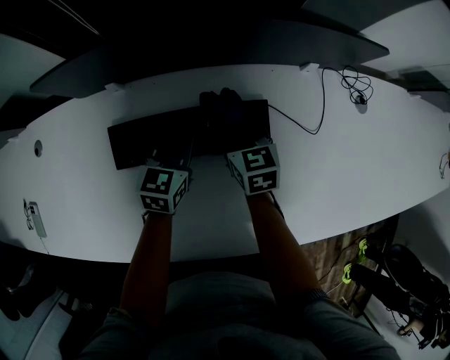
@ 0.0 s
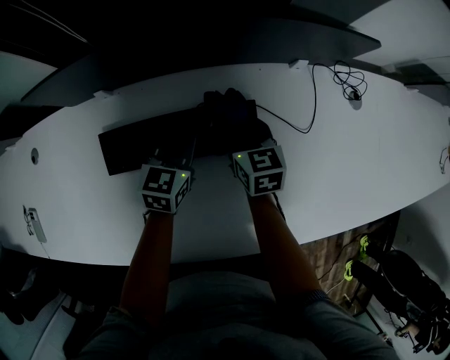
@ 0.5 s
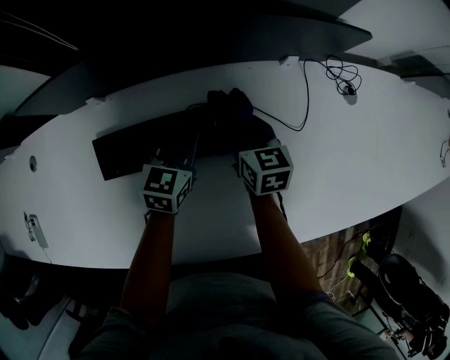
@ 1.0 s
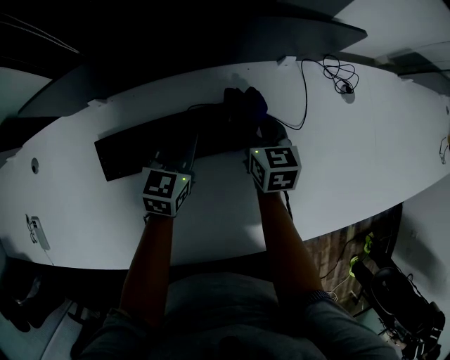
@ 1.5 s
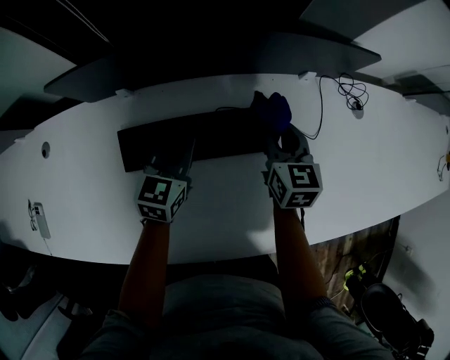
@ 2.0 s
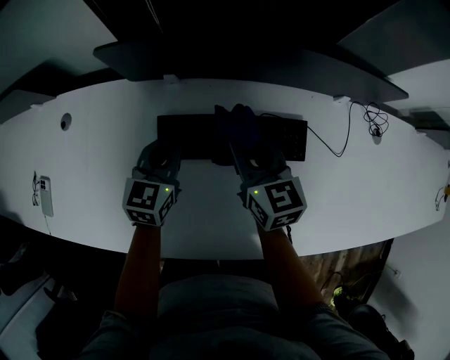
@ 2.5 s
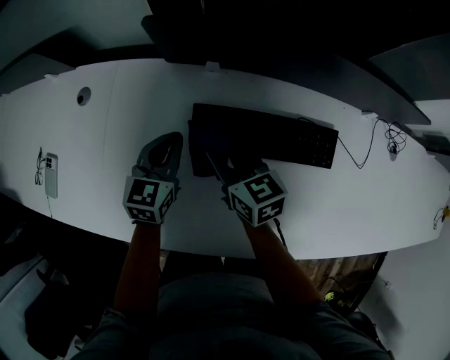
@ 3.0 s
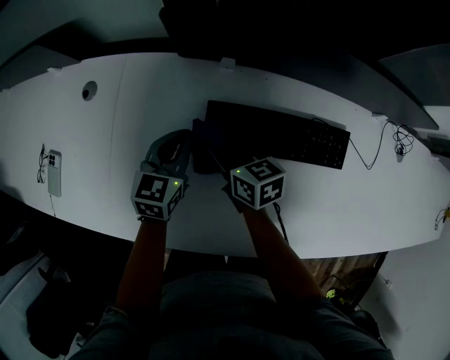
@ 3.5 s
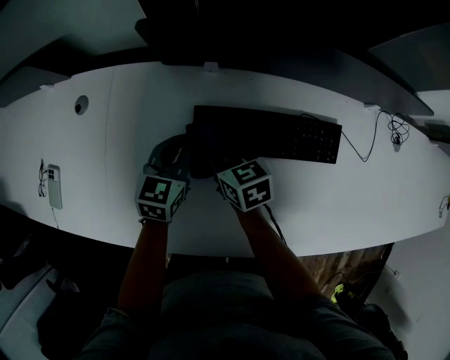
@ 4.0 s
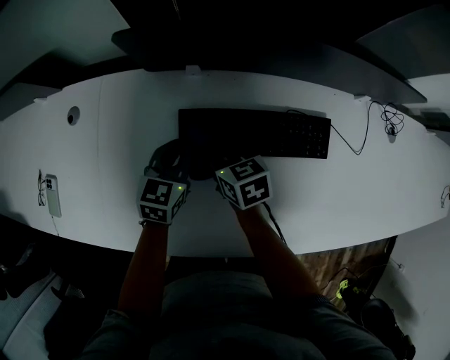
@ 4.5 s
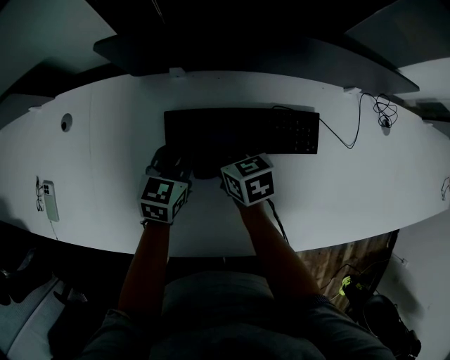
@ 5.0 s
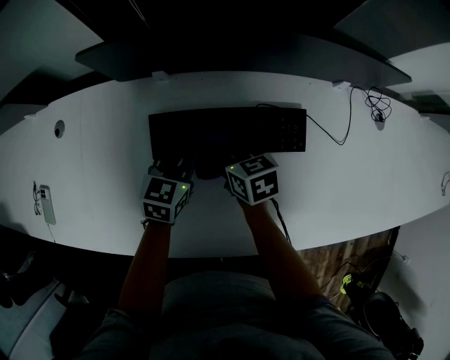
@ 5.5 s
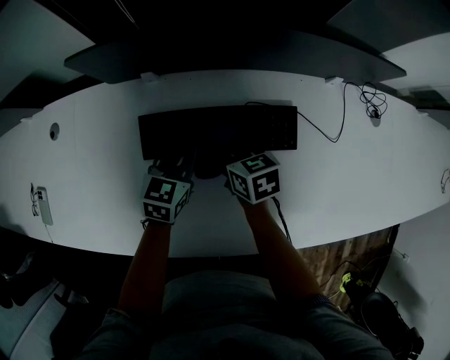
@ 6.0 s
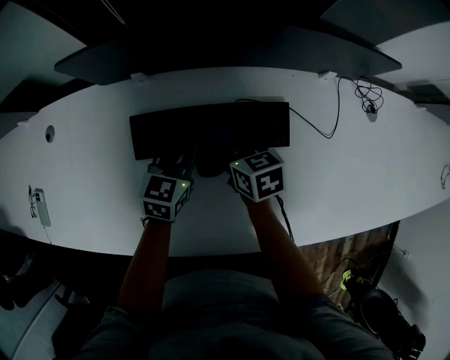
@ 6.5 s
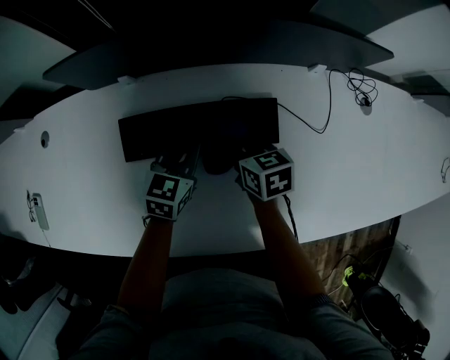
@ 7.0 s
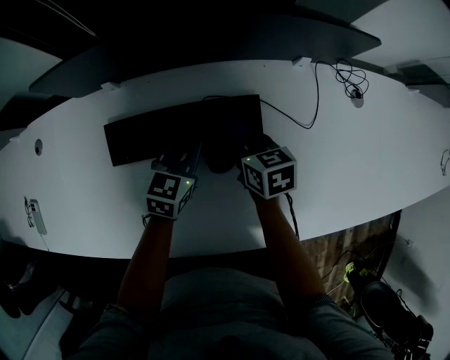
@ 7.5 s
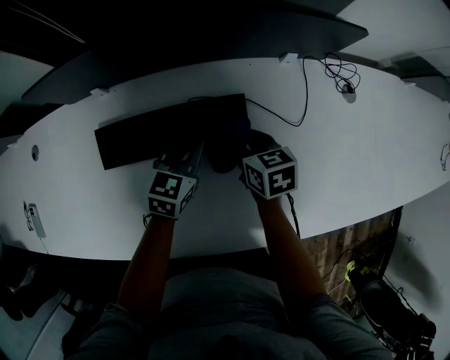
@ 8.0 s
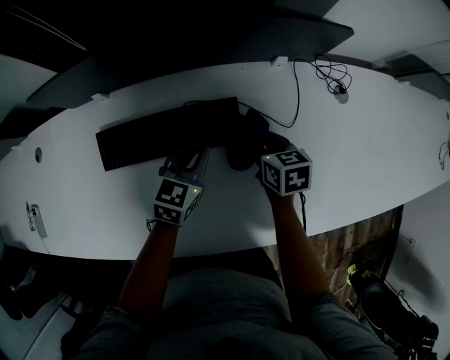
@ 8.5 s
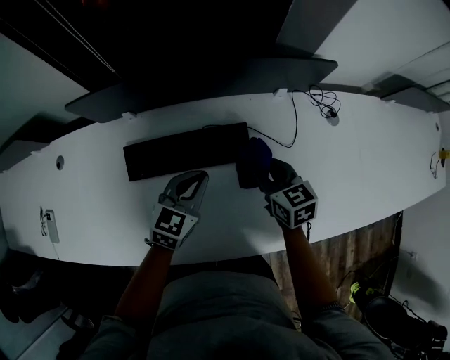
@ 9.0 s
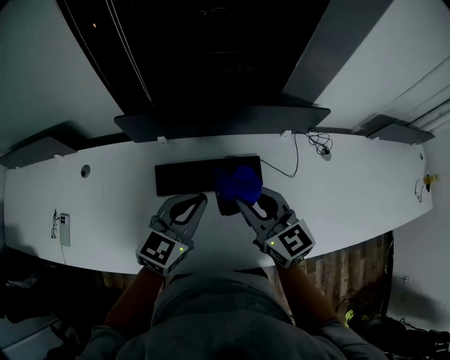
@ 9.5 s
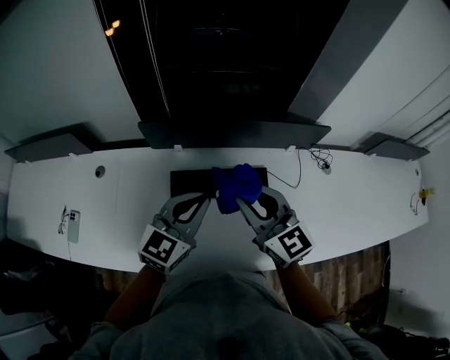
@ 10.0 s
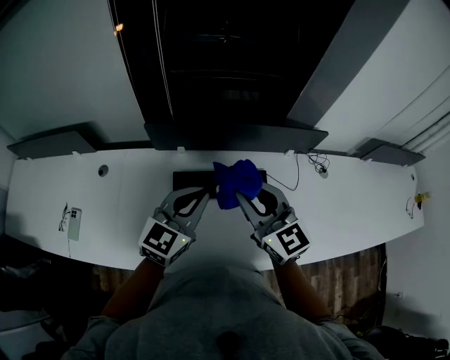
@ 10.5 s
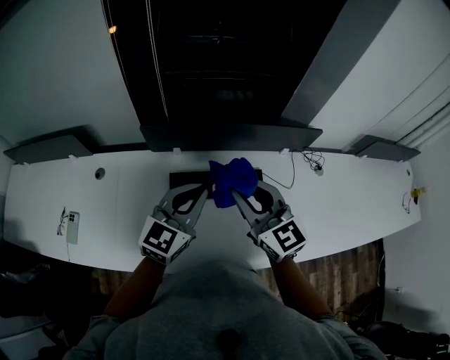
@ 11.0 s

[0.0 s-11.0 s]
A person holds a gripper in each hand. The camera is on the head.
0.0 to 2.0 s: The right gripper shifts some 10 cm to the right and upward, while the left gripper travels to the right and back again, approximately 5 cm each way.
2.0 to 3.5 s: The left gripper changes place by some 25 cm; the right gripper changes place by approximately 40 cm, and swivels approximately 40 degrees.
3.5 to 5.5 s: The two grippers go approximately 15 cm to the right.
5.5 to 7.5 s: The two grippers go about 15 cm to the right.
7.5 to 9.0 s: The right gripper is displaced upward and to the right by approximately 15 cm. The left gripper moves upward and backward, some 10 cm.
9.0 to 11.0 s: Both grippers move upward and to the left, roughly 35 cm. The left gripper turns by about 20 degrees; the right gripper swivels roughly 40 degrees.

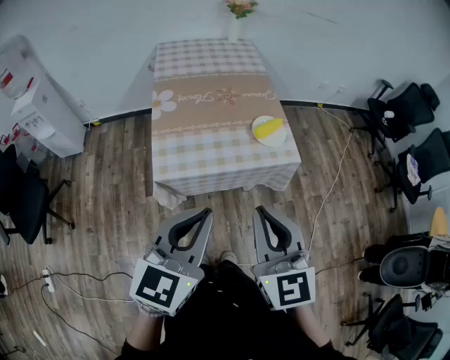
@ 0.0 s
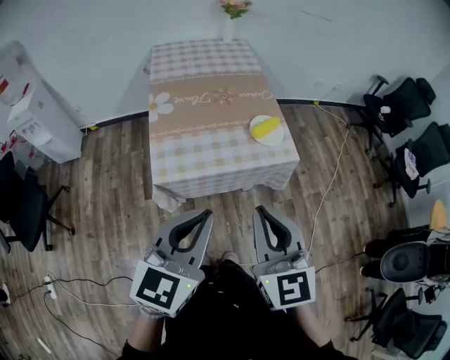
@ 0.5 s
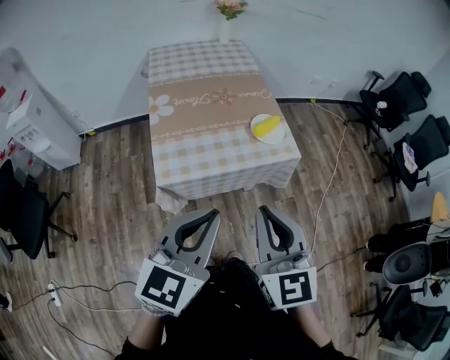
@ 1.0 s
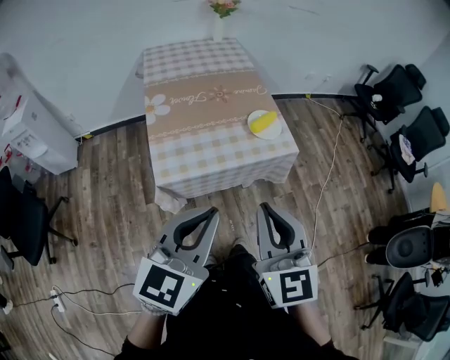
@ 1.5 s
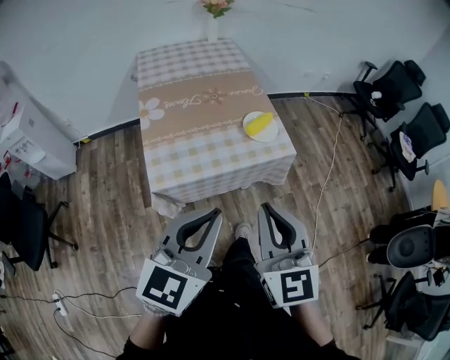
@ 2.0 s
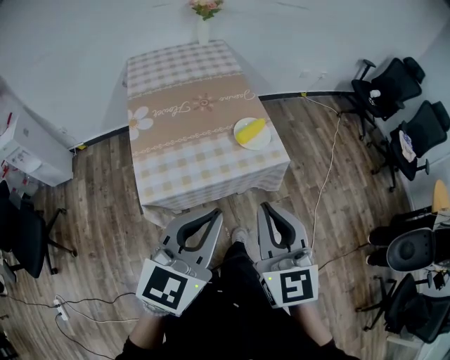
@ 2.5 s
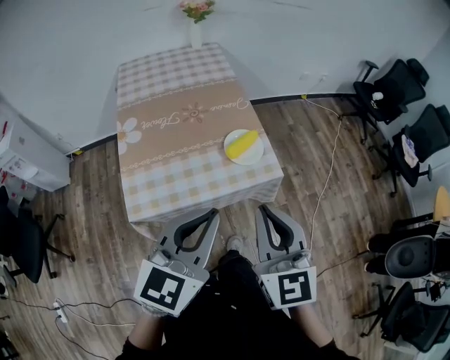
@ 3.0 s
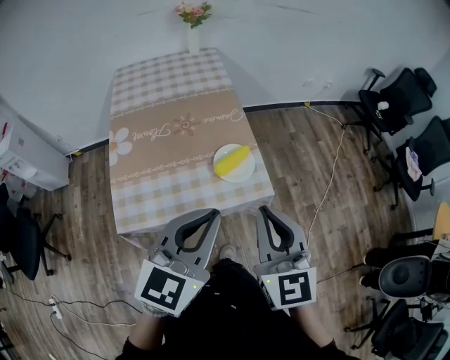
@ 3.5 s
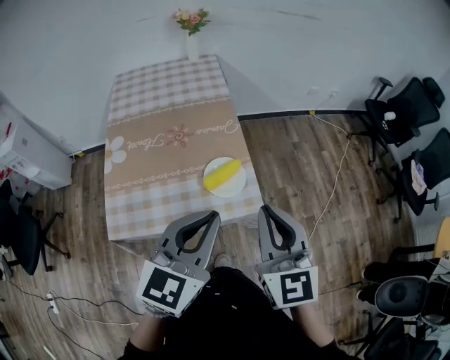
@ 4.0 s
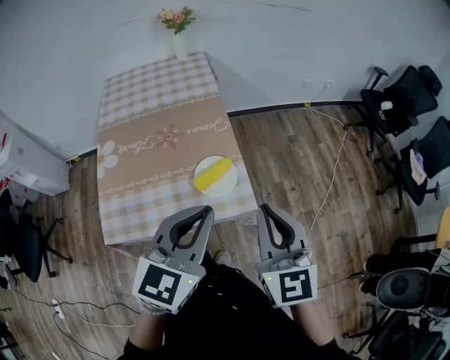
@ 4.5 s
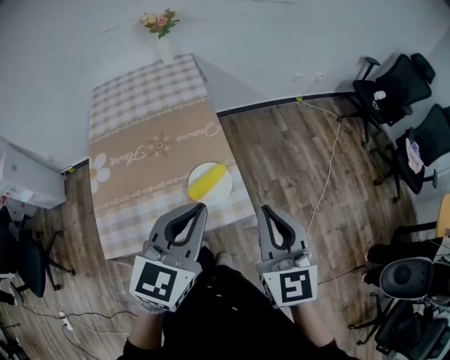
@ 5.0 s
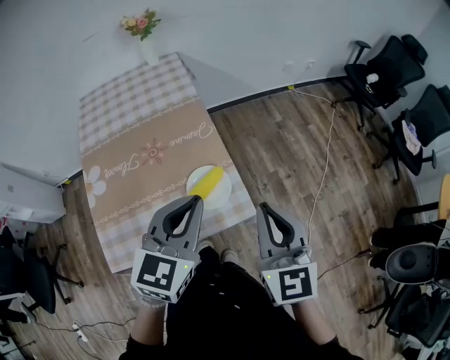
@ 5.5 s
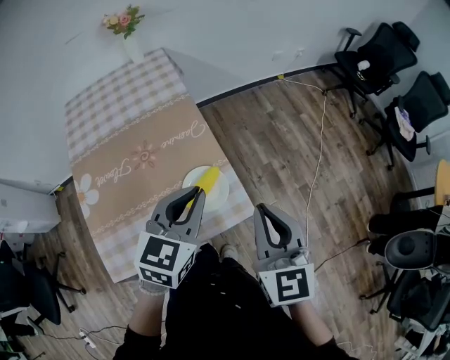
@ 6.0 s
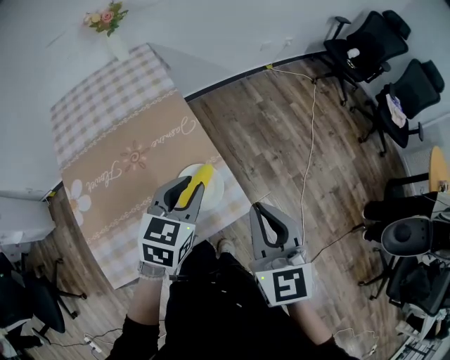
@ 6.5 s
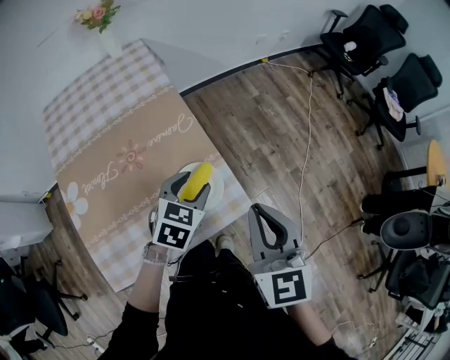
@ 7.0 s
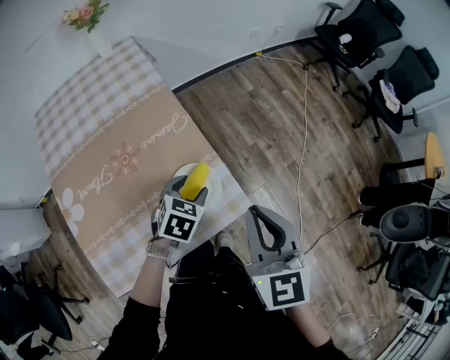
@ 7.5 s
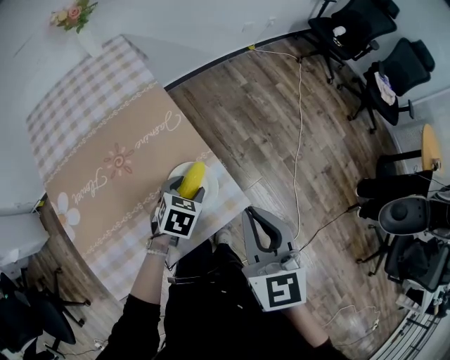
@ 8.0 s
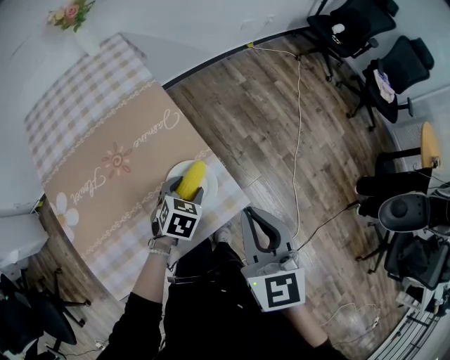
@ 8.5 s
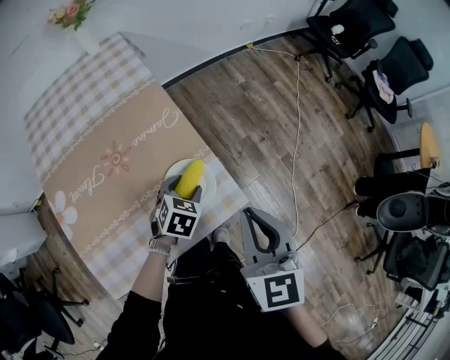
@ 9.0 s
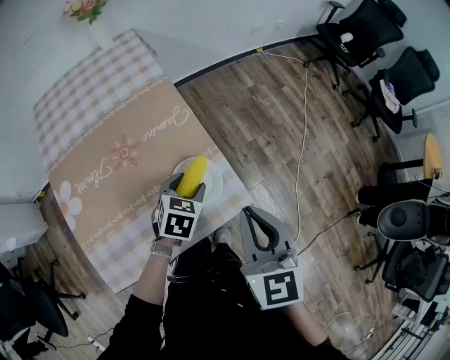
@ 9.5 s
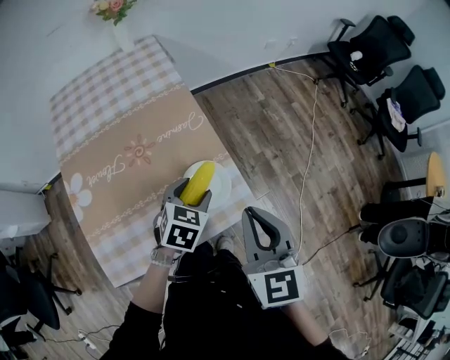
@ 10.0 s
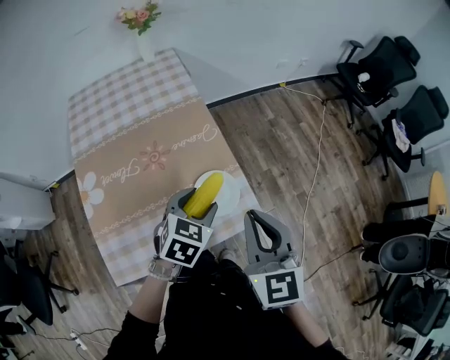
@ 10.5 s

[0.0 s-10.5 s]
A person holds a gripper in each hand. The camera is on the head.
0.0 to 2.0 s: The grippers stay close to where they were, moving slightly.
2.0 to 4.0 s: Both grippers travel together forward and to the right, some 30 cm.
4.0 to 6.5 s: The right gripper travels forward by about 10 cm, while the left gripper is displaced forward and downward by some 25 cm, and rotates approximately 20 degrees.
6.5 to 8.5 s: The left gripper goes some 20 cm downward, swivels some 30 degrees, and opens up.
8.5 to 10.5 s: The right gripper shifts by approximately 5 cm. Meanwhile the left gripper is displaced upward by approximately 15 cm.

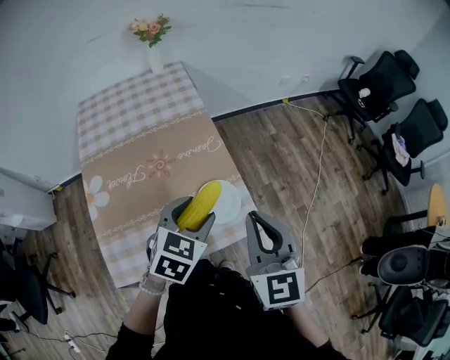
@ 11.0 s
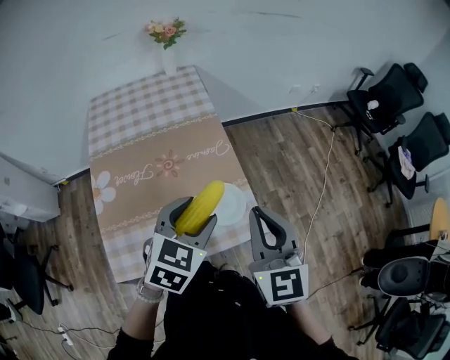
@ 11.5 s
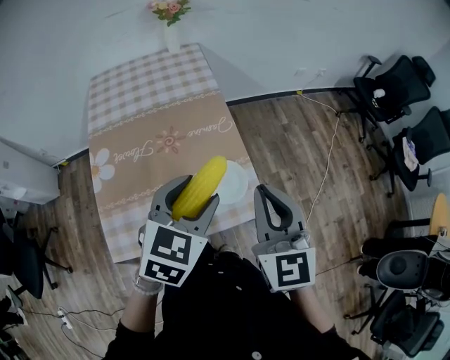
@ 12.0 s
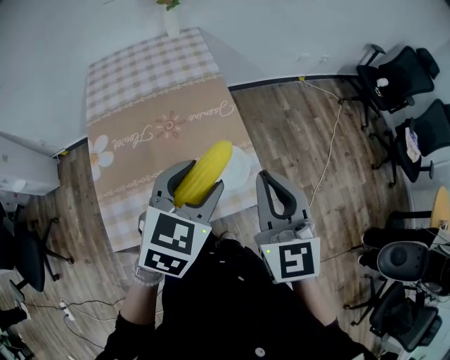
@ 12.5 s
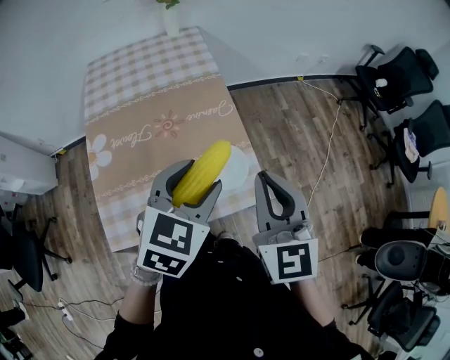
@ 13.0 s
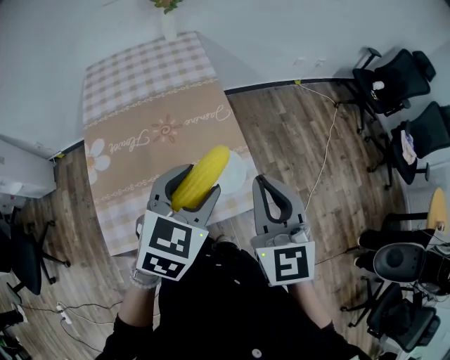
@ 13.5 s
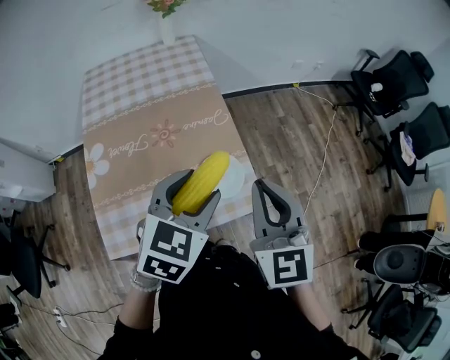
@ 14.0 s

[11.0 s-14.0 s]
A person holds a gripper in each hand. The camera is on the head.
11.0 to 12.5 s: The left gripper moves upward, roughly 5 cm.
12.5 to 14.0 s: Both grippers stay put.

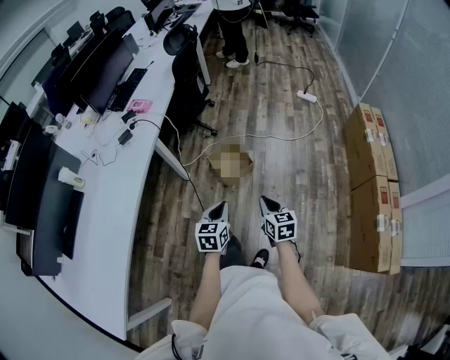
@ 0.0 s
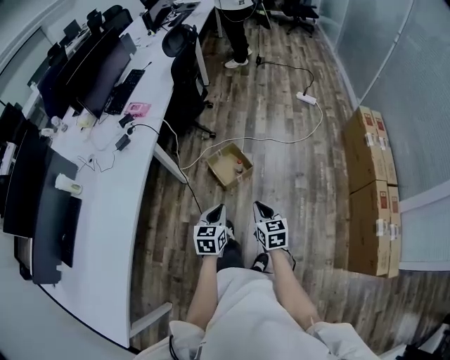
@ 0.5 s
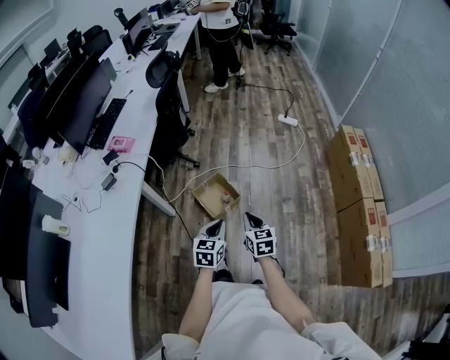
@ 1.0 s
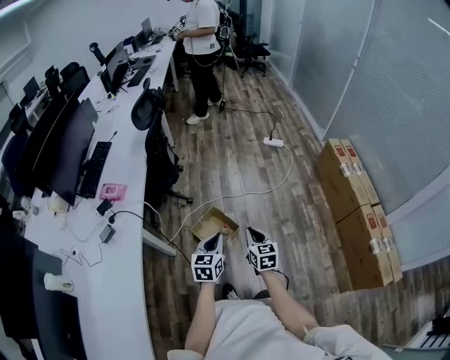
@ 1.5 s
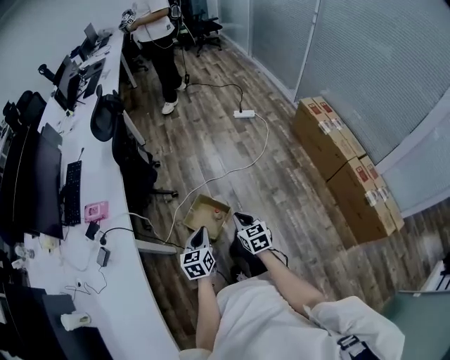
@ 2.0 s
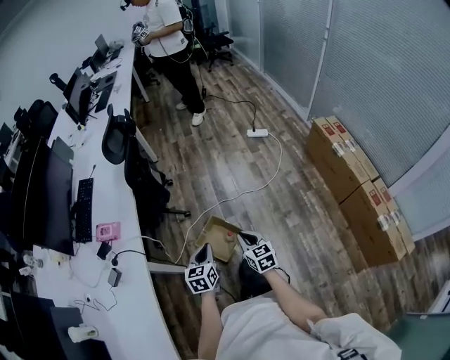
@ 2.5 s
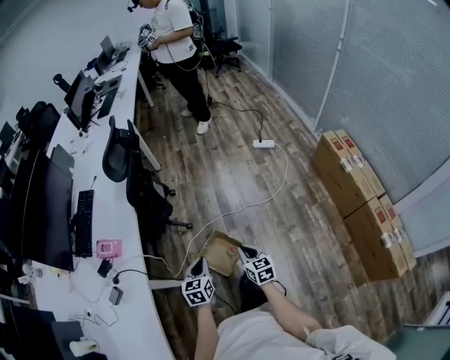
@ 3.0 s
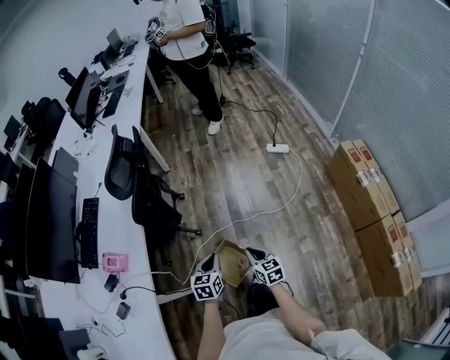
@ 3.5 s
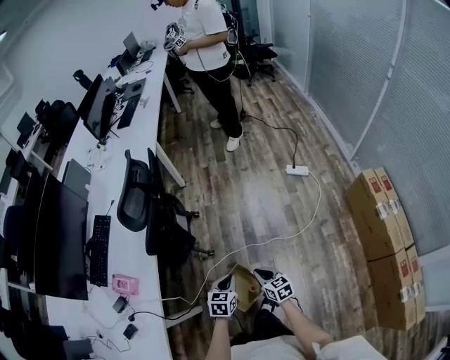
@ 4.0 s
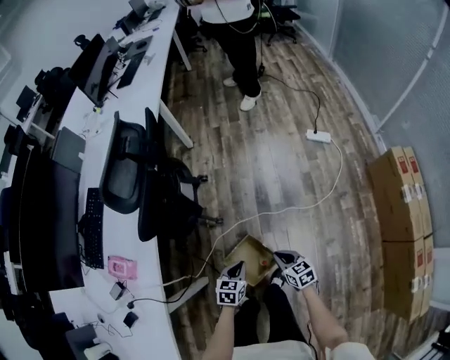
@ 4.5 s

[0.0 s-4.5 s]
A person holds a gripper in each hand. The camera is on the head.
0.0 to 2.0 s: Both grippers move forward, roughly 30 cm.
2.0 to 4.5 s: The two grippers go roughly 40 cm forward and downward. The right gripper turns by about 30 degrees.
